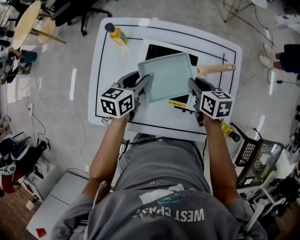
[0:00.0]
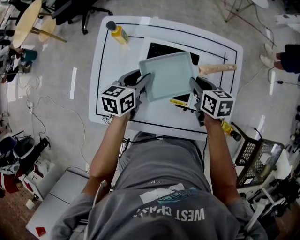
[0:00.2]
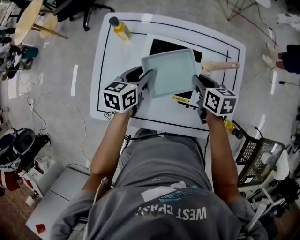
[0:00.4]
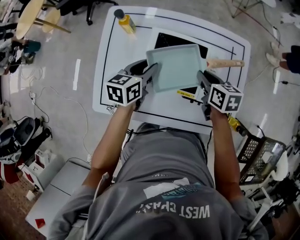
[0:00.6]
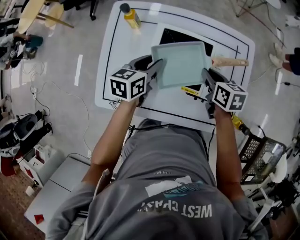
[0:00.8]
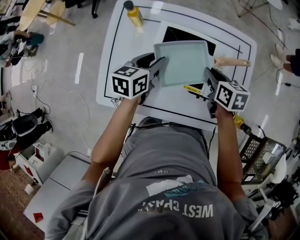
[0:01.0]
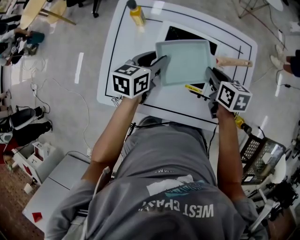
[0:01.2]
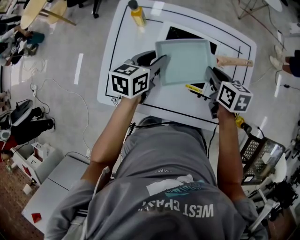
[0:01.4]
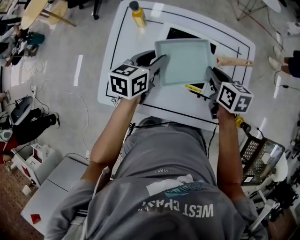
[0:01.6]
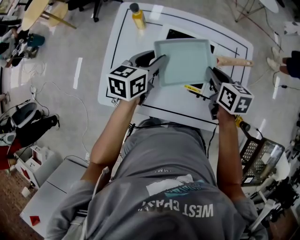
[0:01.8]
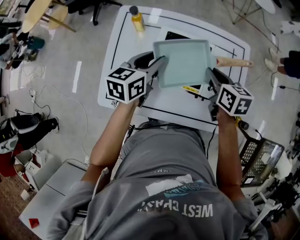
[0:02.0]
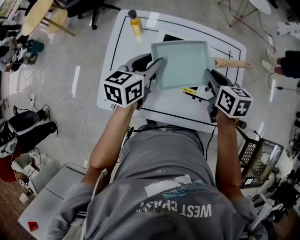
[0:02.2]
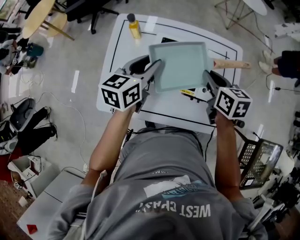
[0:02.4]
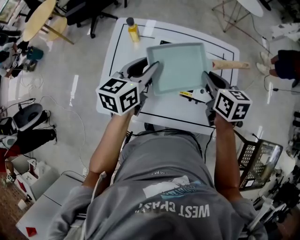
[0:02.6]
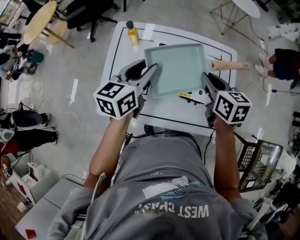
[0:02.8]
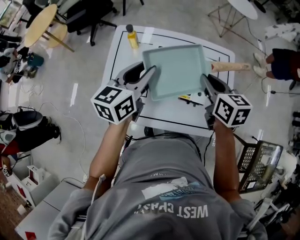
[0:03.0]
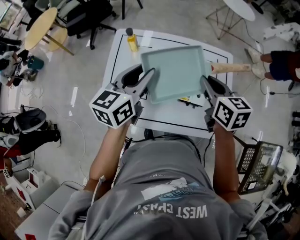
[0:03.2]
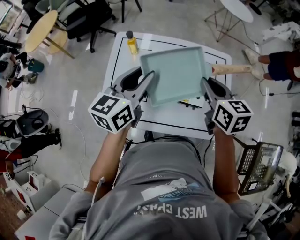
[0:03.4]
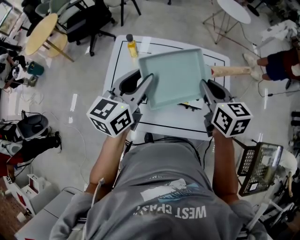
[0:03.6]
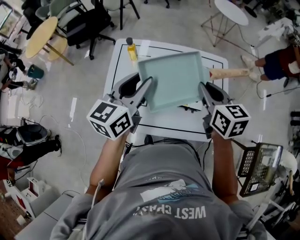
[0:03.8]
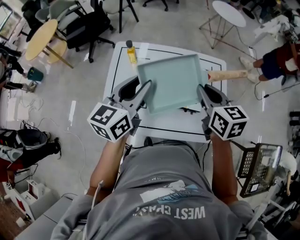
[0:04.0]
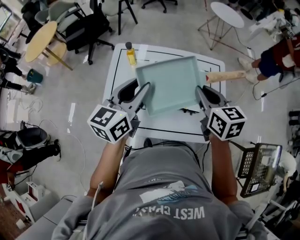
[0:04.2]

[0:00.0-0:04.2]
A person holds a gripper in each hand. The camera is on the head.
0:00.0 to 0:01.4: There are only small adjustments of the grippers.
0:01.4 to 0:02.8: The grippers both shift upward by about 15 cm.
0:02.8 to 0:04.2: The left gripper moves upward and backward, roughly 10 cm; the right gripper travels upward by roughly 10 cm.

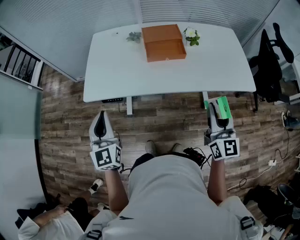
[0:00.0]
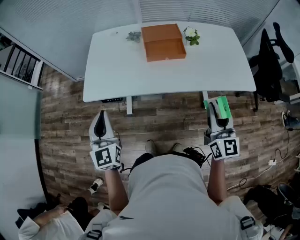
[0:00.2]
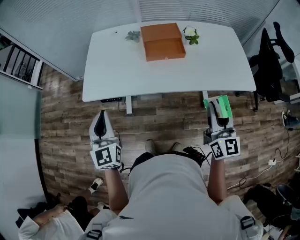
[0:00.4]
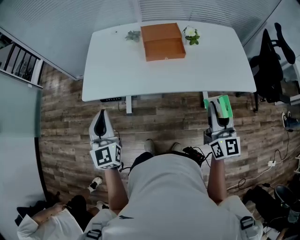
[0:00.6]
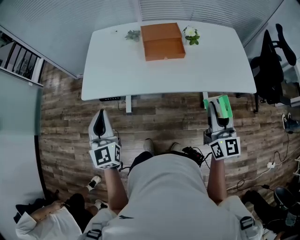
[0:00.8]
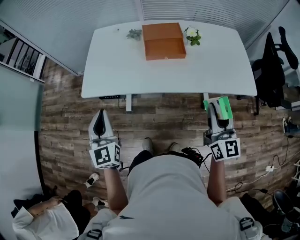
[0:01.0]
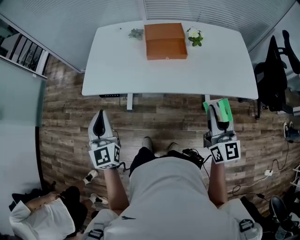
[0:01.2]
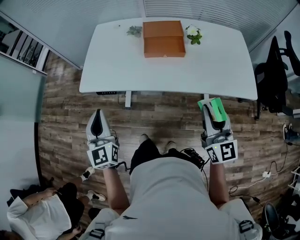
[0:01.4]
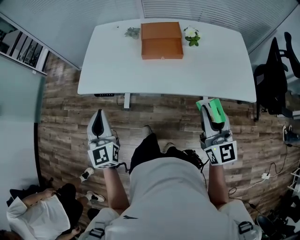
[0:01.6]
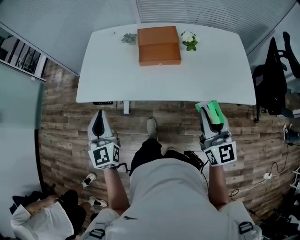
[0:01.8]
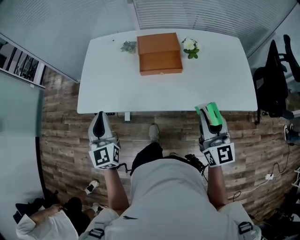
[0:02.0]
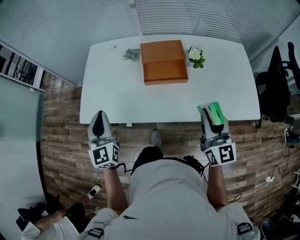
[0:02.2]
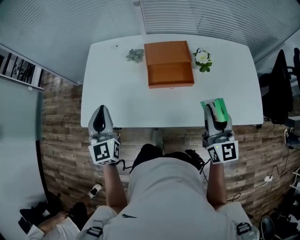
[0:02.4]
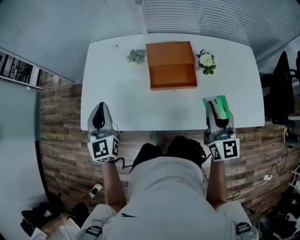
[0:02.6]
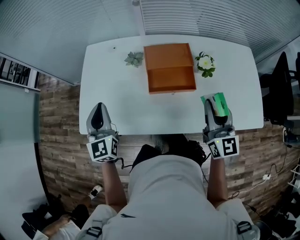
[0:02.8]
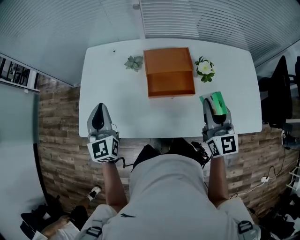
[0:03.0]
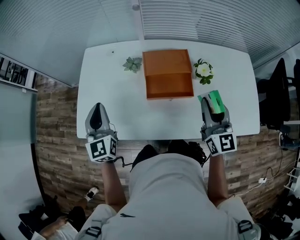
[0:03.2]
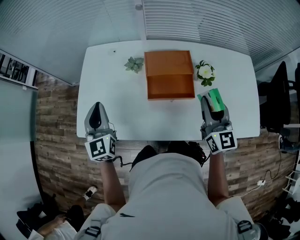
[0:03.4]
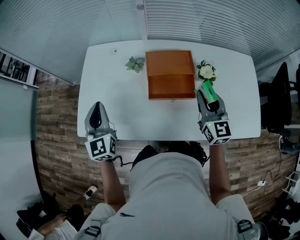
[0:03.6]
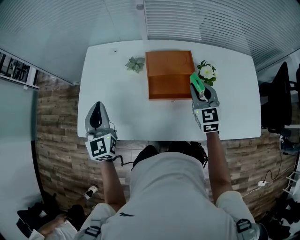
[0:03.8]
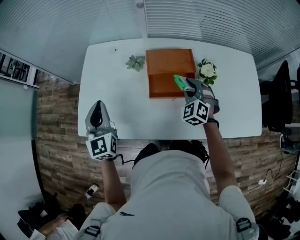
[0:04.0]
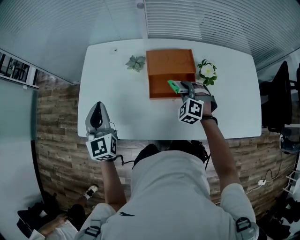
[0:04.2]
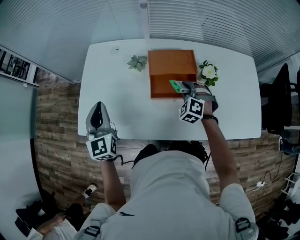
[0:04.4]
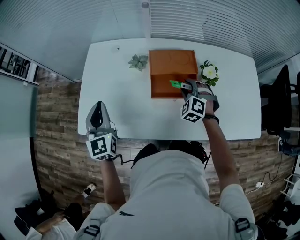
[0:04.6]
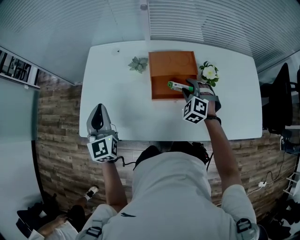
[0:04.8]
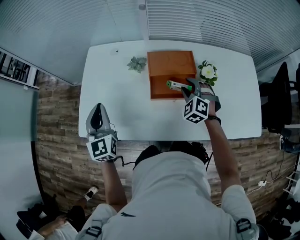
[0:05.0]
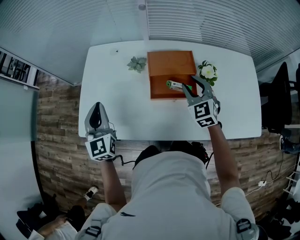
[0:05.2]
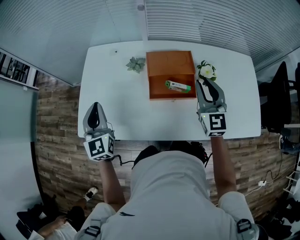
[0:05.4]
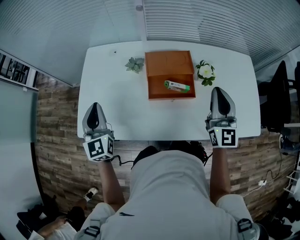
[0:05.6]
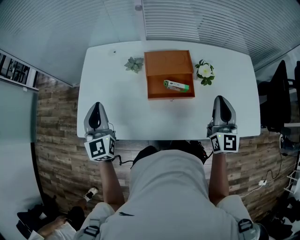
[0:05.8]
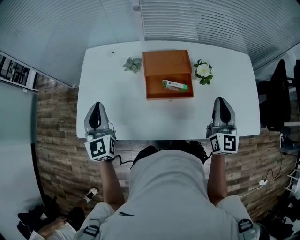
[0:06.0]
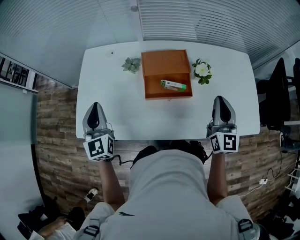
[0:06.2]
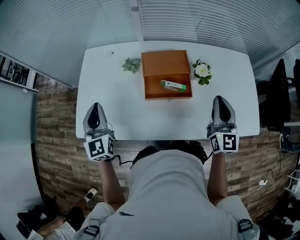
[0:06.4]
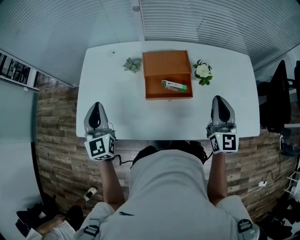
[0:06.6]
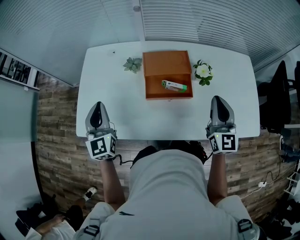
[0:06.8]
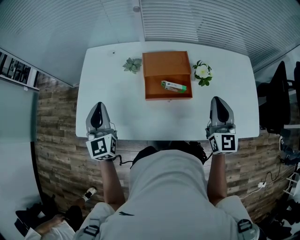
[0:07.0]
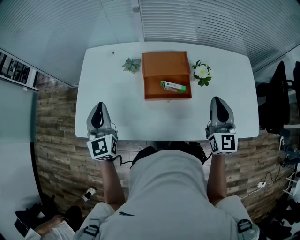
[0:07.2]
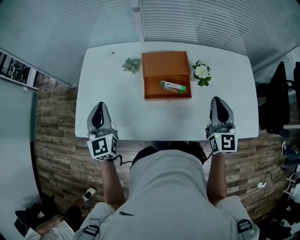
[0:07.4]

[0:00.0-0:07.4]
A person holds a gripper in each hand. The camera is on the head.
0:00.0 to 0:01.4: The grippers make only small movements.
0:01.4 to 0:03.0: Both grippers move forward, some 30 cm.
0:03.0 to 0:04.4: The right gripper heads downward and forward, covering approximately 25 cm, and tilts its fingers about 40 degrees downward.
0:04.4 to 0:06.0: The right gripper travels upward, to the right and backward by about 25 cm, tips its fingers upward by some 50 degrees, and closes.
0:06.0 to 0:07.4: The grippers move only a little.

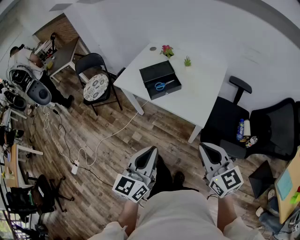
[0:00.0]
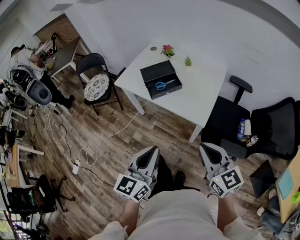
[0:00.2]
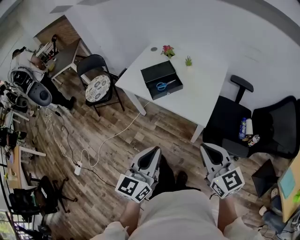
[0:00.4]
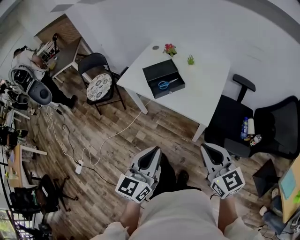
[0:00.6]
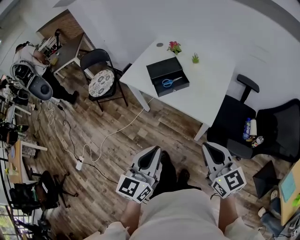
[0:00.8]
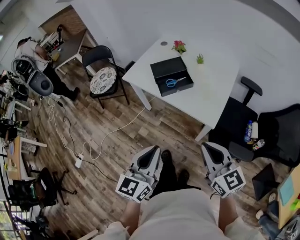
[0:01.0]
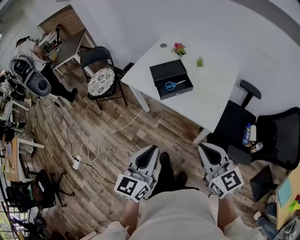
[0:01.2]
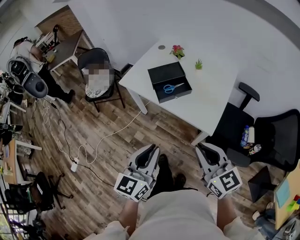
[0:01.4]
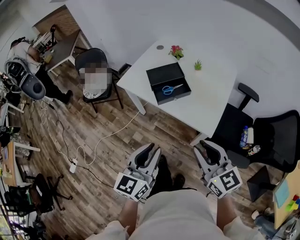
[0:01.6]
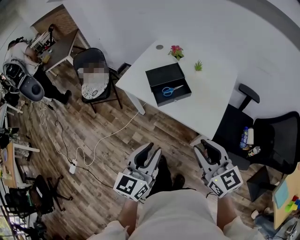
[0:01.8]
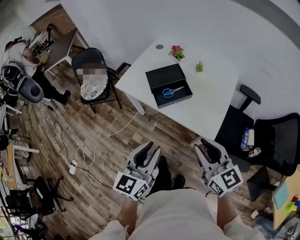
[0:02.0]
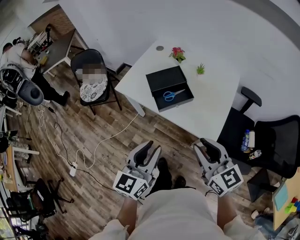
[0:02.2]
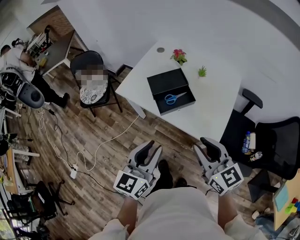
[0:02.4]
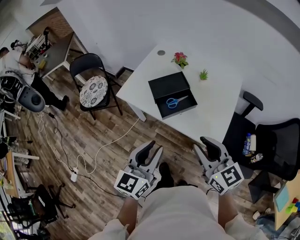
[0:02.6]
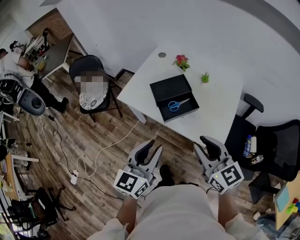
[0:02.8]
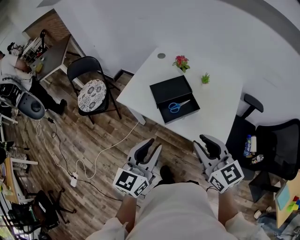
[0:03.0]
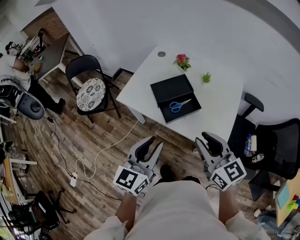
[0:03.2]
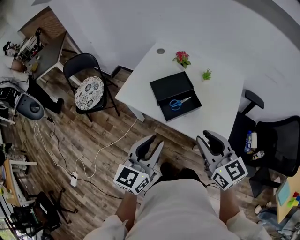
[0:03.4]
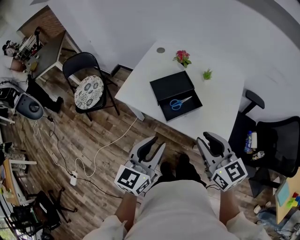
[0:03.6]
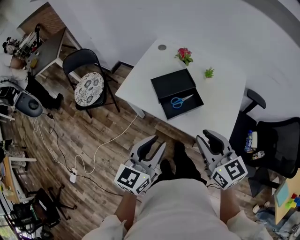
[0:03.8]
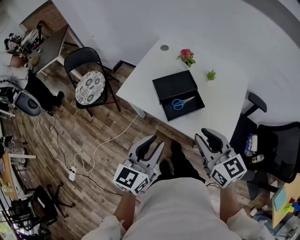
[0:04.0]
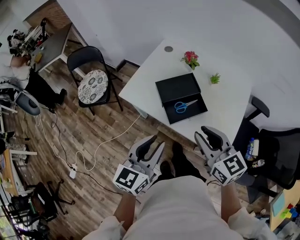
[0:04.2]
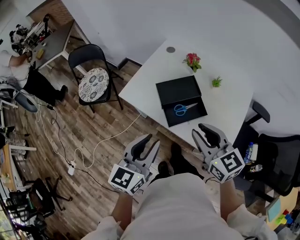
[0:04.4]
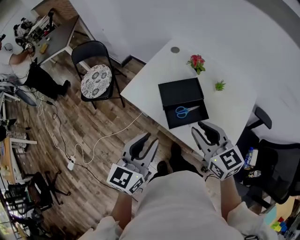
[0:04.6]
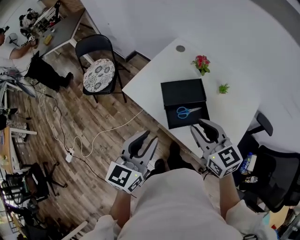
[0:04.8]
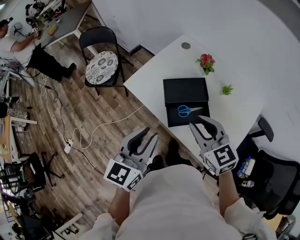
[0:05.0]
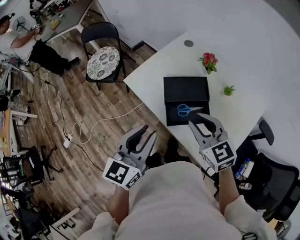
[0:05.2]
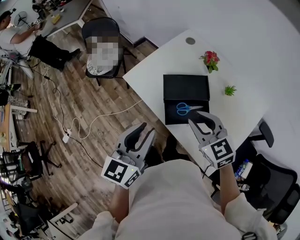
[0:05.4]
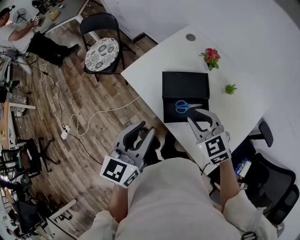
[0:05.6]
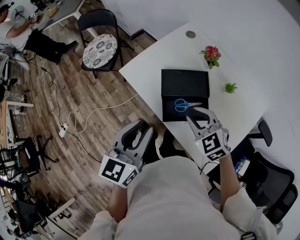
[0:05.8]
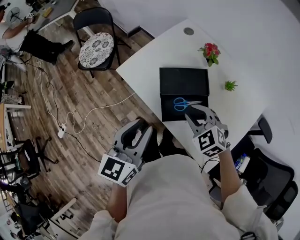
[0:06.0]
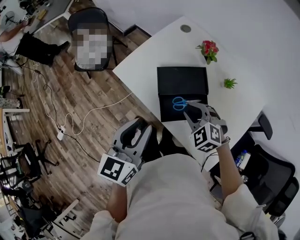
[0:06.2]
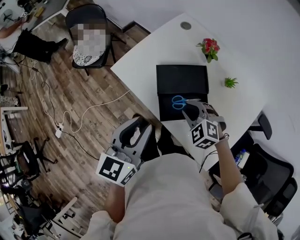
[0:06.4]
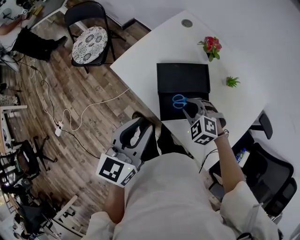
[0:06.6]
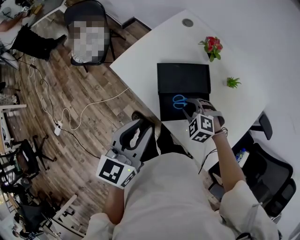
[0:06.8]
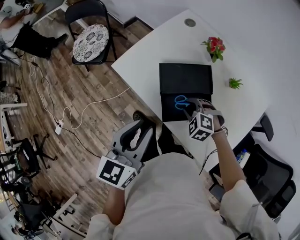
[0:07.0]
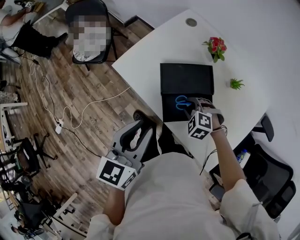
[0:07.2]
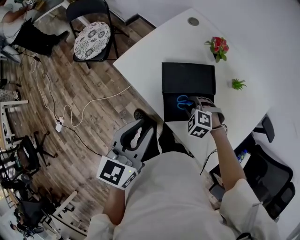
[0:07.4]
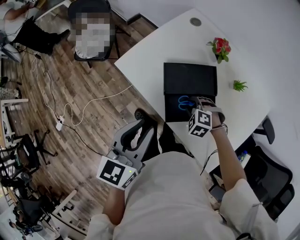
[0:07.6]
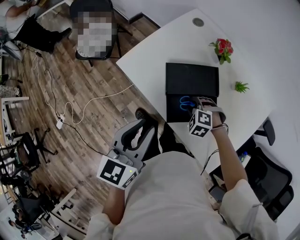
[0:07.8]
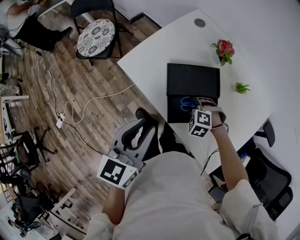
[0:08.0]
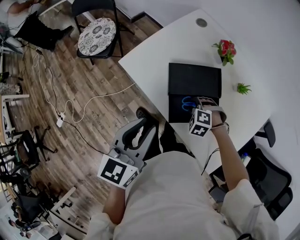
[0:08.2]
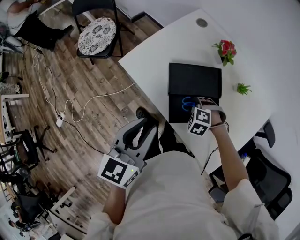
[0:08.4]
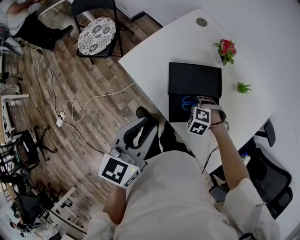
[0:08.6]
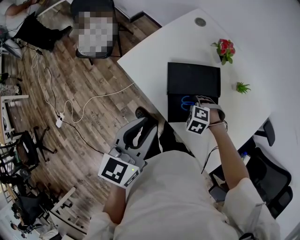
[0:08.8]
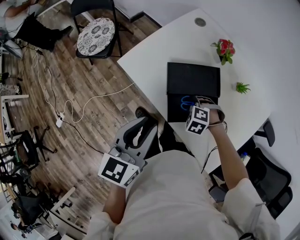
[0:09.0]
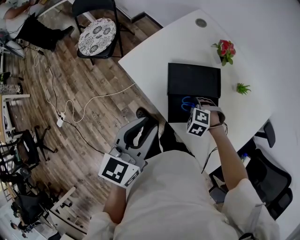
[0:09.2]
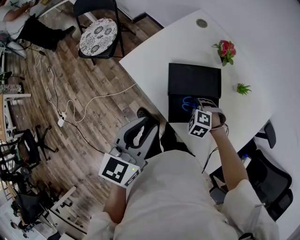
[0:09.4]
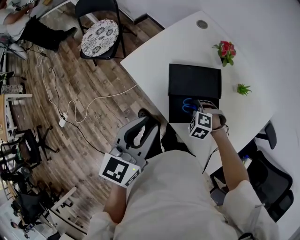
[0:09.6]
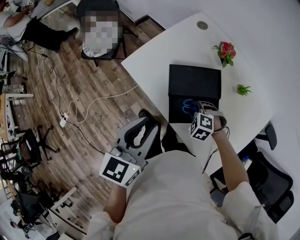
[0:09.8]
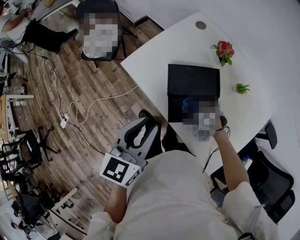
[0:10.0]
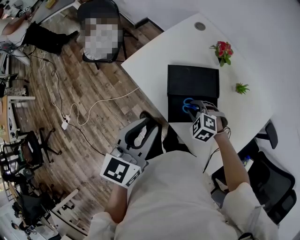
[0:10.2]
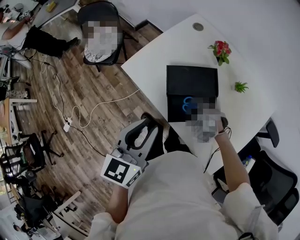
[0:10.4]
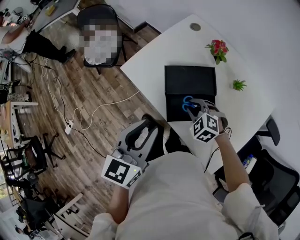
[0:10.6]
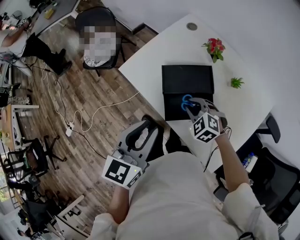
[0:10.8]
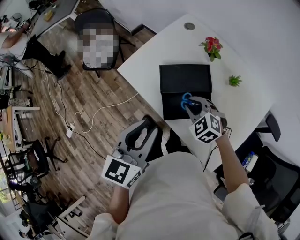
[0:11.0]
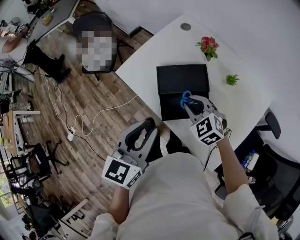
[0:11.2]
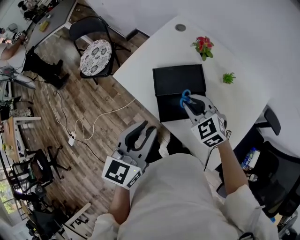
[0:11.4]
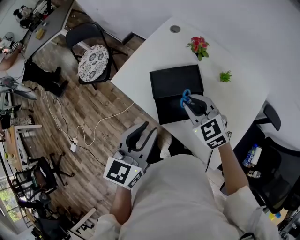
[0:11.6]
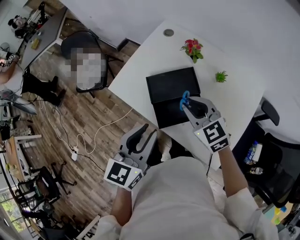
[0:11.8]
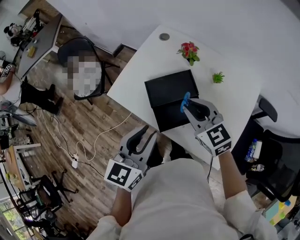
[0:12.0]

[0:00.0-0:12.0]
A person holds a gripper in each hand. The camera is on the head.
0:00.0 to 0:01.6: The right gripper moves forward and to the left, about 10 cm, and opens up. The left gripper goes approximately 10 cm forward.
0:01.6 to 0:03.0: Both grippers travel together forward, approximately 15 cm.
0:03.0 to 0:04.4: The right gripper travels forward by some 10 cm, while the left gripper goes approximately 5 cm forward.
0:04.4 to 0:06.0: The left gripper heads forward, covering roughly 5 cm; the right gripper goes some 20 cm downward and forward, and swivels some 50 degrees.
0:06.0 to 0:07.6: The right gripper heads downward, covering roughly 15 cm, and rotates about 30 degrees.
0:07.6 to 0:09.0: The grippers stay close to where they were, moving slightly.
0:09.0 to 0:10.4: The right gripper heads upward, covering some 5 cm.
0:10.4 to 0:12.0: The right gripper moves upward, some 20 cm, and points its fingers roughly 30 degrees further upward.
